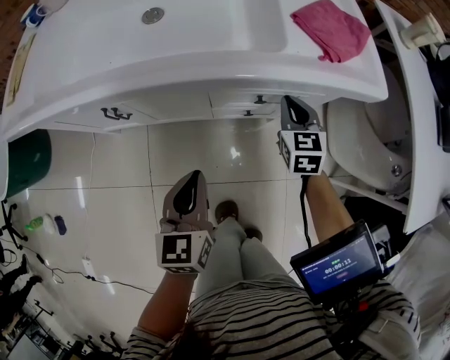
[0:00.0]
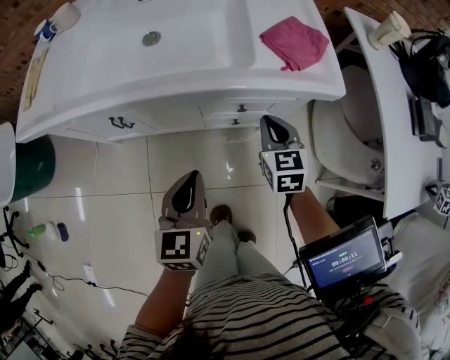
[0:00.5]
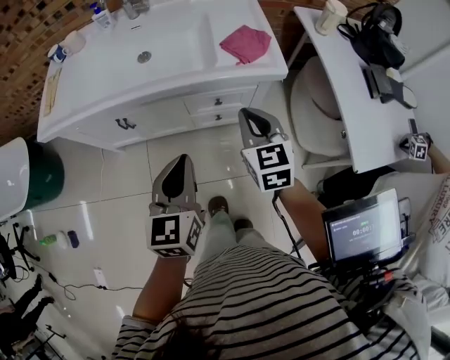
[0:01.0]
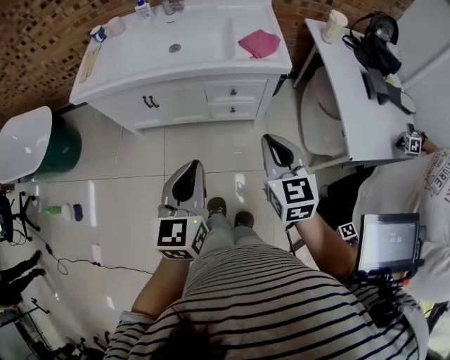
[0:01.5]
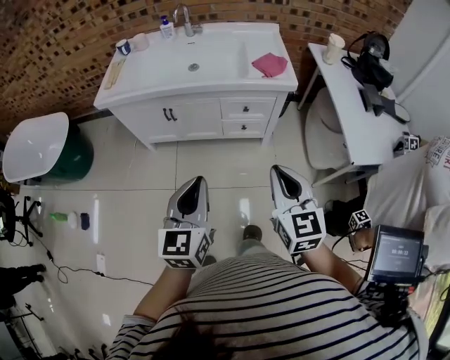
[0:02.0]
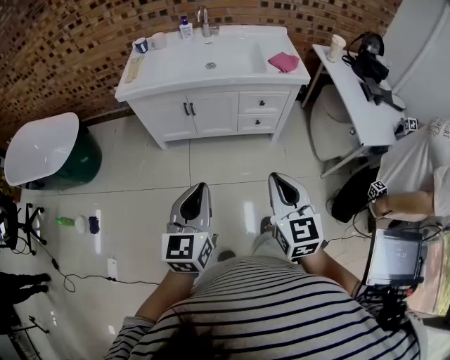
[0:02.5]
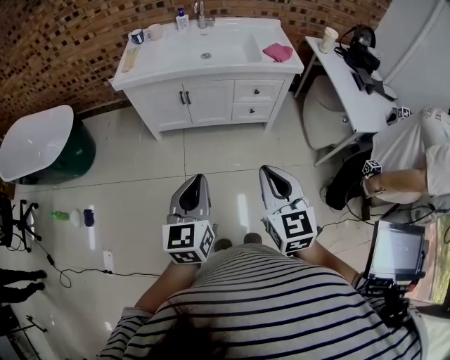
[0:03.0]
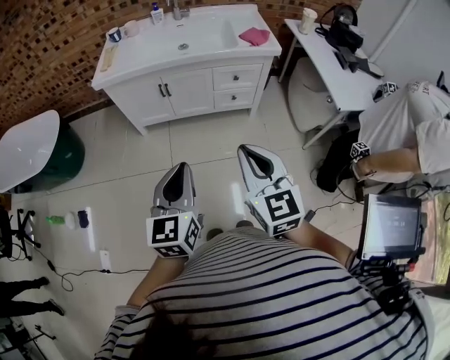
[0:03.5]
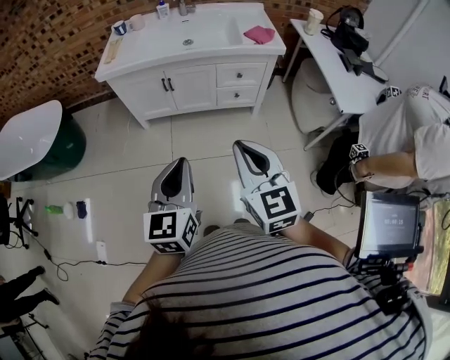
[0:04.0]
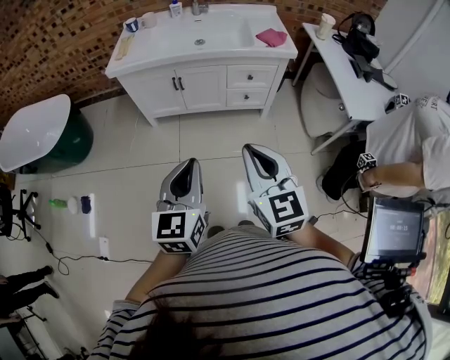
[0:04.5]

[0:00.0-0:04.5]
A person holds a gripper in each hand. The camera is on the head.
0:00.0 to 0:02.0: The right gripper moves backward and upward, some 60 cm, while the left gripper shifts approximately 50 cm upward and backward.
0:02.0 to 0:04.5: The right gripper travels to the left and backward by approximately 25 cm; the left gripper heads backward and to the left, covering approximately 20 cm.

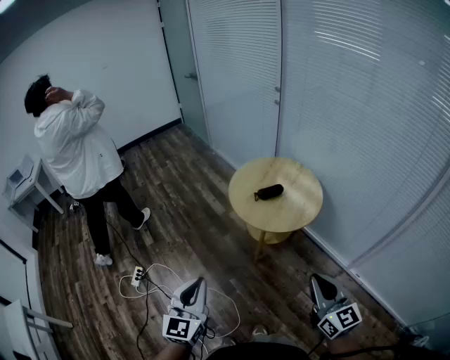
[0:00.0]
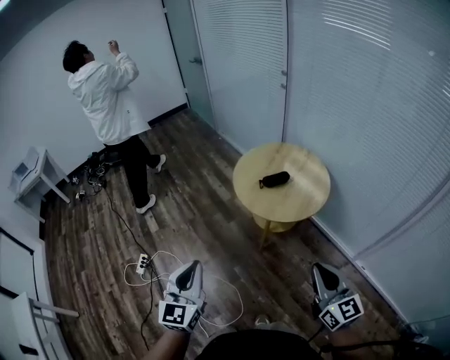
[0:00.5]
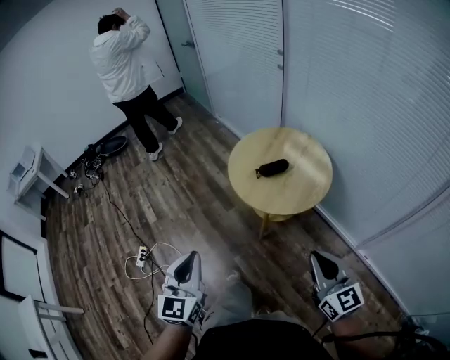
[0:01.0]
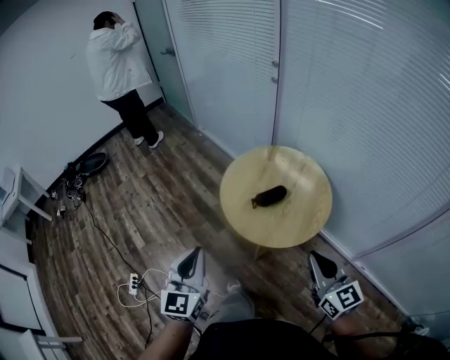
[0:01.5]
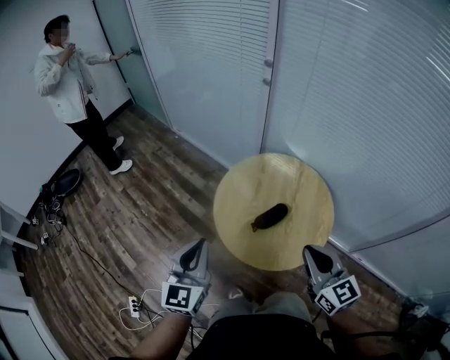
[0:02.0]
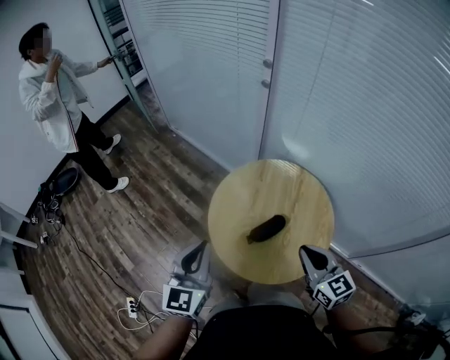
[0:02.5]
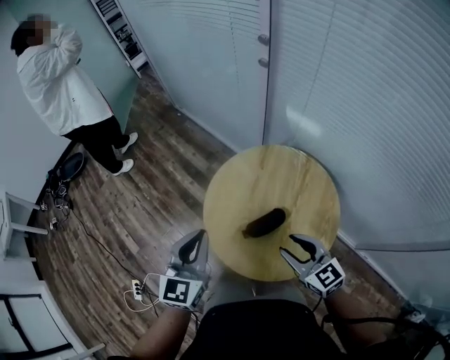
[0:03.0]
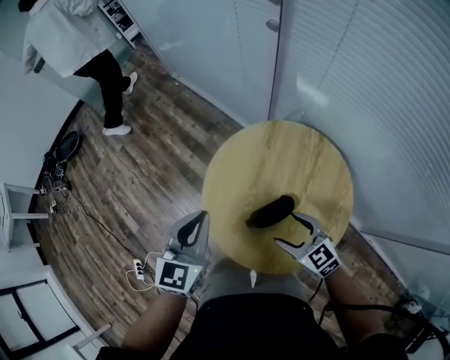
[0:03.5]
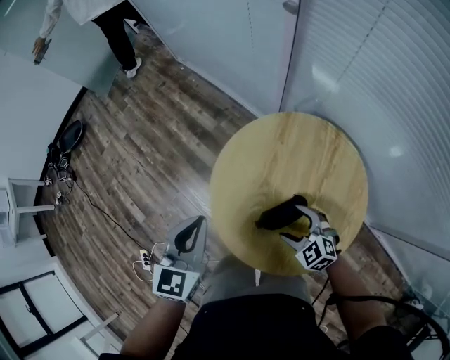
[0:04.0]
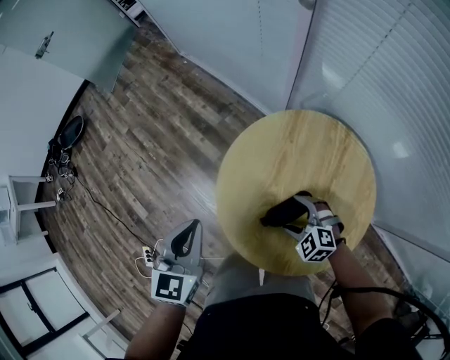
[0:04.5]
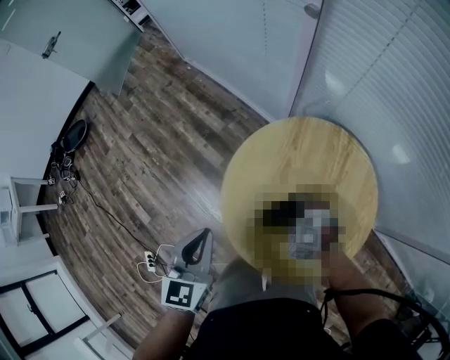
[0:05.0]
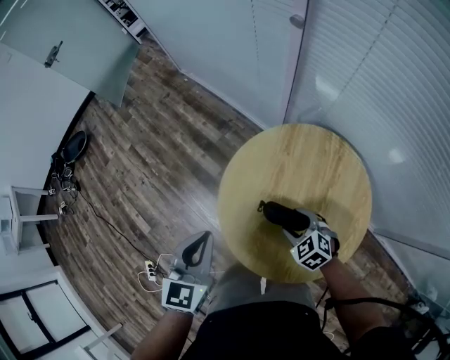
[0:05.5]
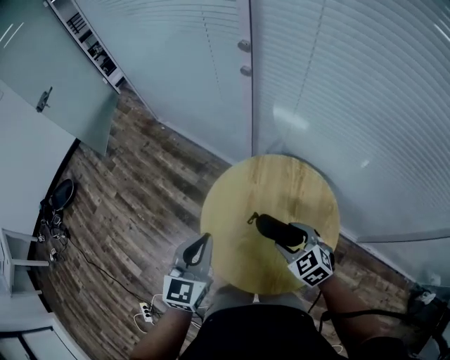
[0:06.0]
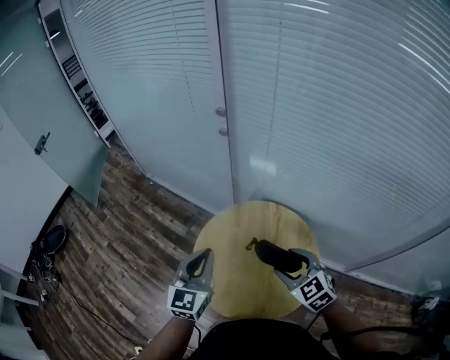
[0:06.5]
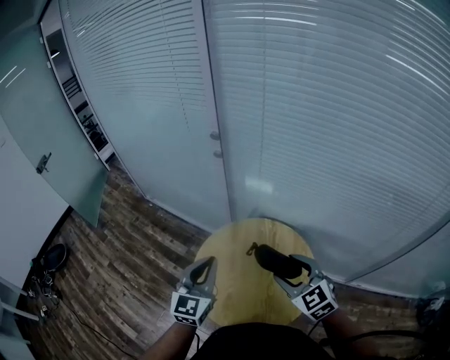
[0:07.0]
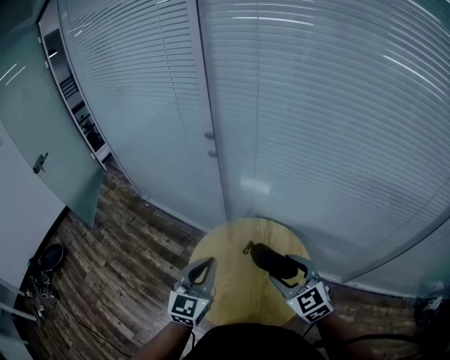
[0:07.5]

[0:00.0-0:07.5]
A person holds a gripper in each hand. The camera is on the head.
0:00.0 to 0:02.0: Both grippers are carried forward, some 50 cm.
0:02.0 to 0:04.0: The right gripper travels downward and forward by about 40 cm, tips its fingers downward by roughly 30 degrees, and opens its fingers, while the left gripper heads forward, downward and to the right, covering approximately 25 cm, and rotates approximately 20 degrees.
0:05.5 to 0:07.5: The right gripper goes roughly 35 cm upward, and changes its angle by some 40 degrees. The left gripper moves upward, about 15 cm, and turns by approximately 30 degrees.

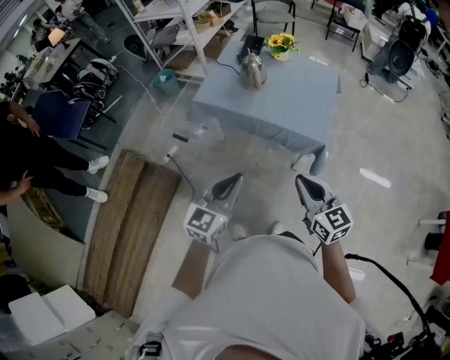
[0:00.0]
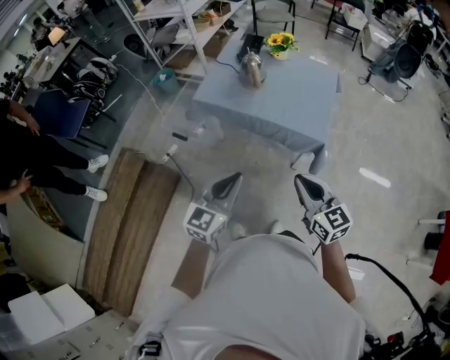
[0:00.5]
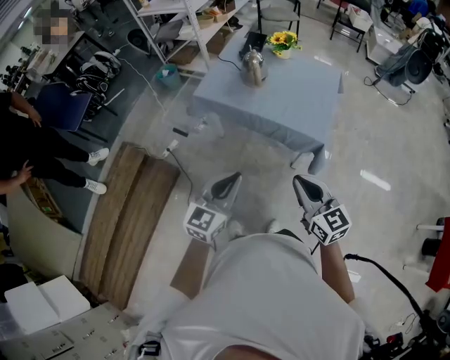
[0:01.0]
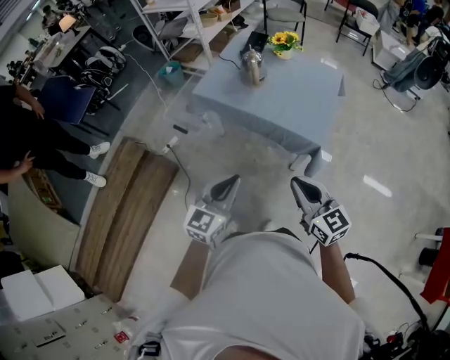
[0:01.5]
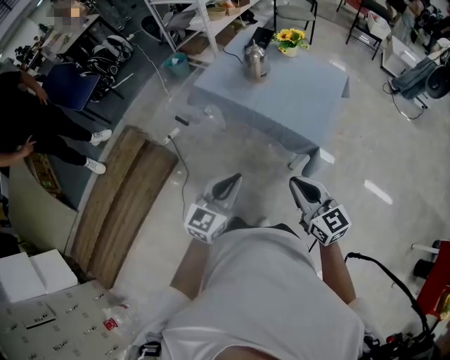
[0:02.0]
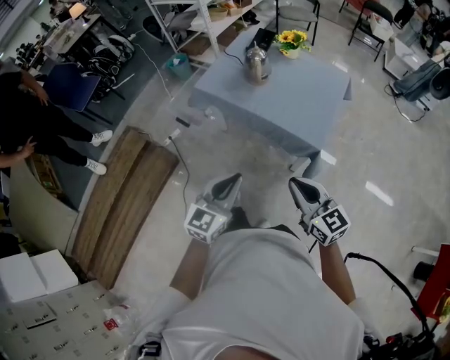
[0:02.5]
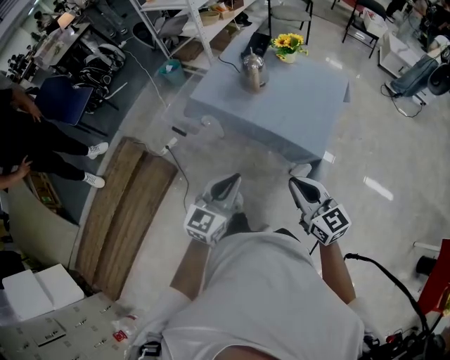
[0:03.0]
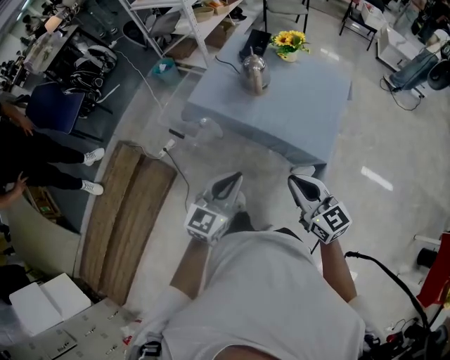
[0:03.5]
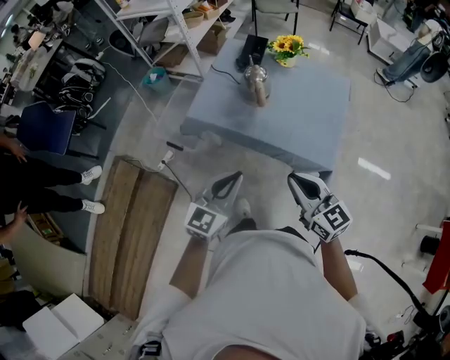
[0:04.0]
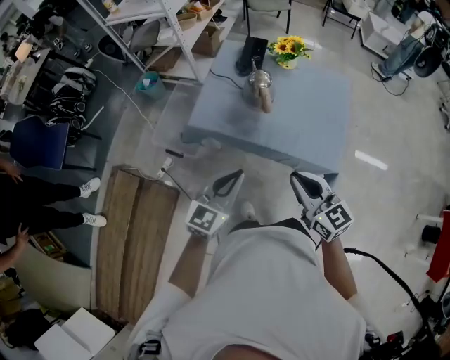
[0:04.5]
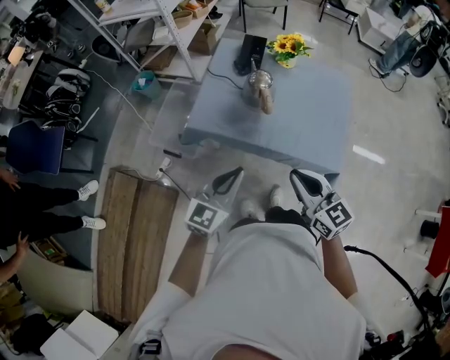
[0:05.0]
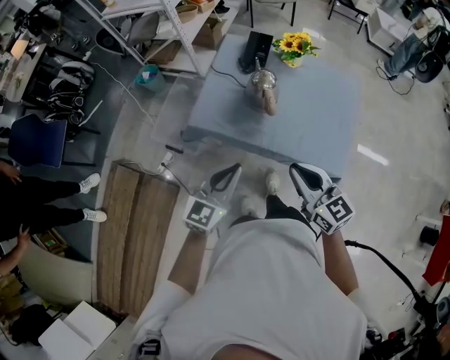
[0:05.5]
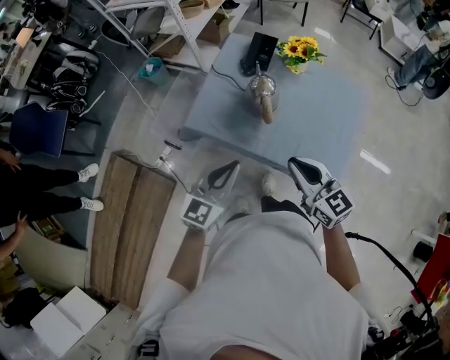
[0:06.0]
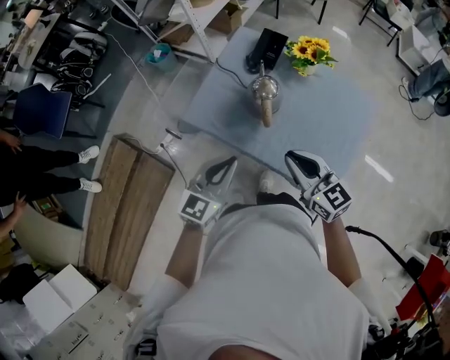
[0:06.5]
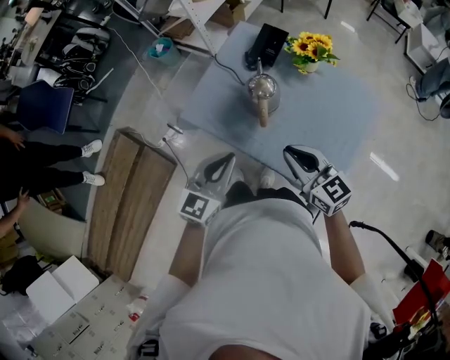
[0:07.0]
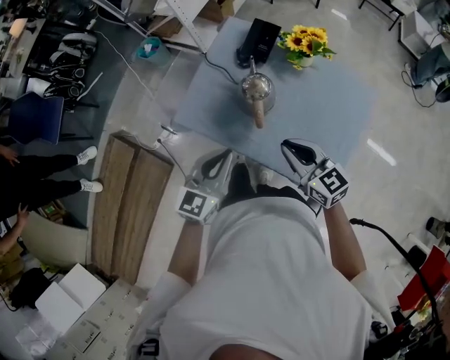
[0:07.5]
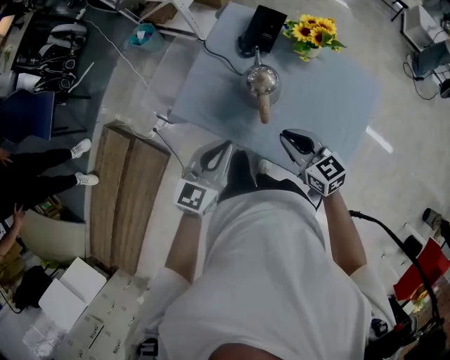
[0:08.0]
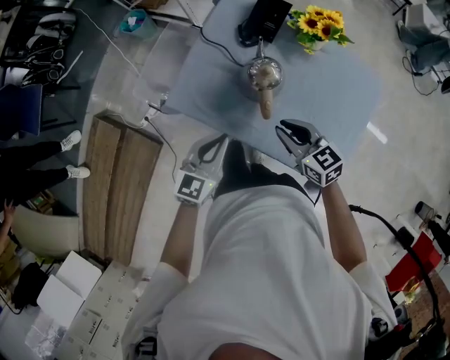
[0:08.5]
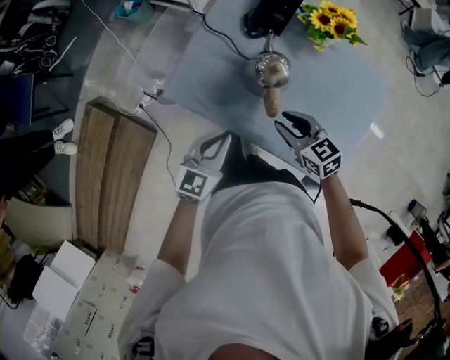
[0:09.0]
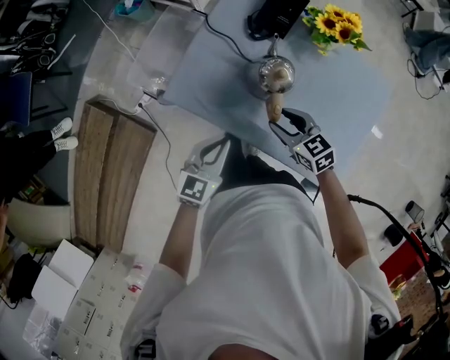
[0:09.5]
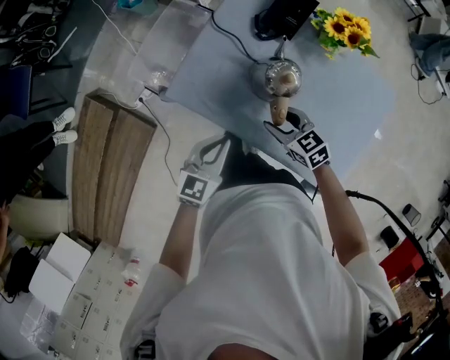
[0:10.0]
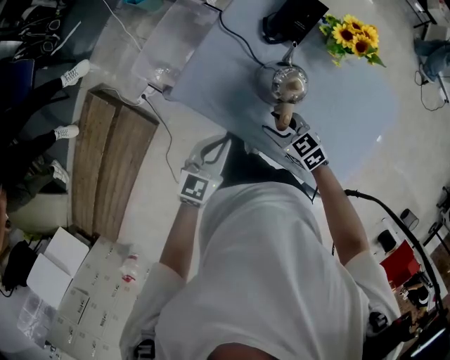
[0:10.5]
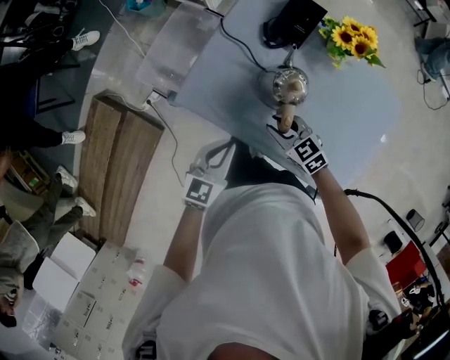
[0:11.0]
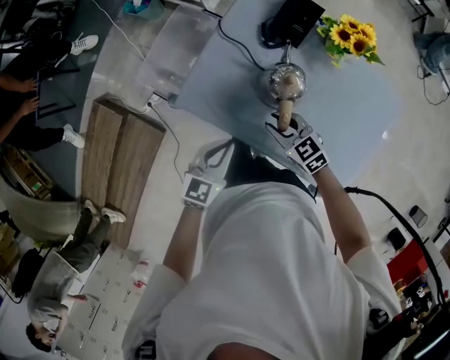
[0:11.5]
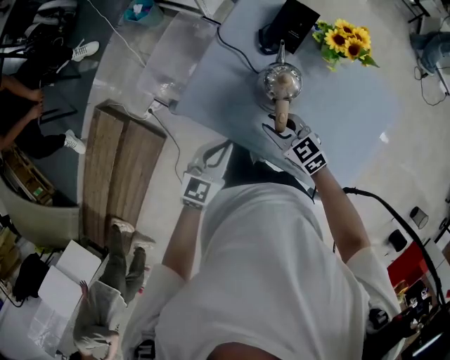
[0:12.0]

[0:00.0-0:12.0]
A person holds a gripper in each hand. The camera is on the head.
0:00.0 to 0:02.0: Both grippers travel together to the right, approximately 10 cm.
0:02.0 to 0:04.0: The left gripper moves forward, roughly 25 cm. The right gripper travels forward and to the left by approximately 25 cm.
0:04.0 to 0:06.0: The two grippers go about 15 cm forward.
0:06.0 to 0:08.0: The grippers both shift forward and downward by about 15 cm.
0:08.0 to 0:10.0: The right gripper is displaced downward, forward and to the left by about 15 cm, changes its angle by some 20 degrees, and opens, while the left gripper is displaced downward by about 10 cm.
0:10.0 to 0:12.0: The right gripper shifts by some 5 cm, and closes its fingers.

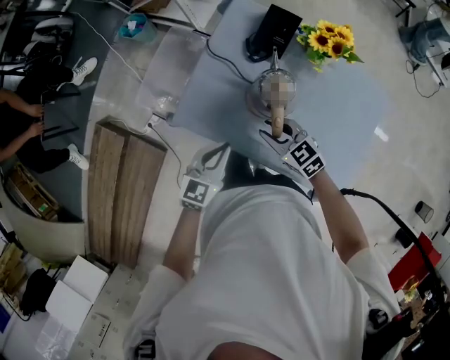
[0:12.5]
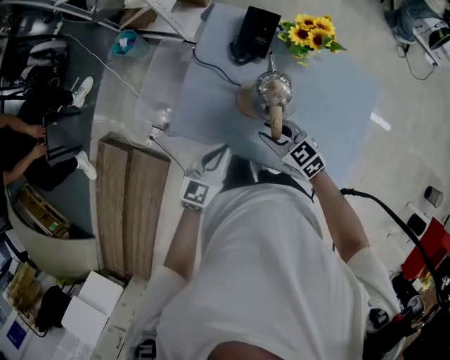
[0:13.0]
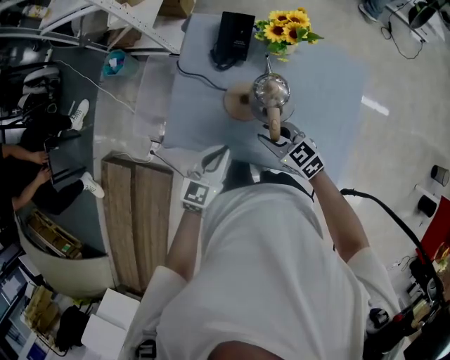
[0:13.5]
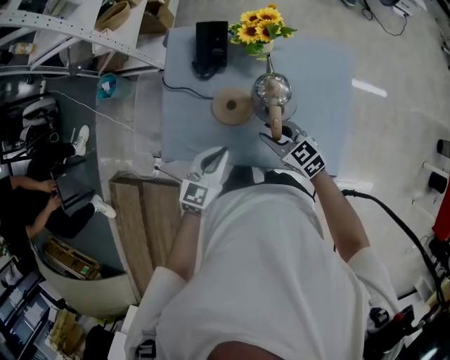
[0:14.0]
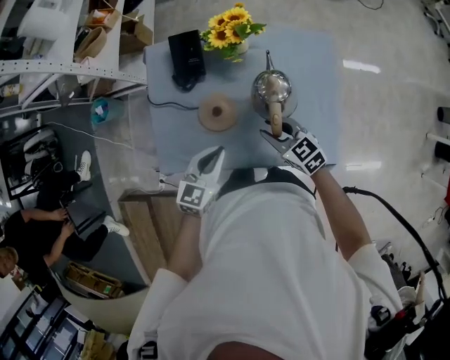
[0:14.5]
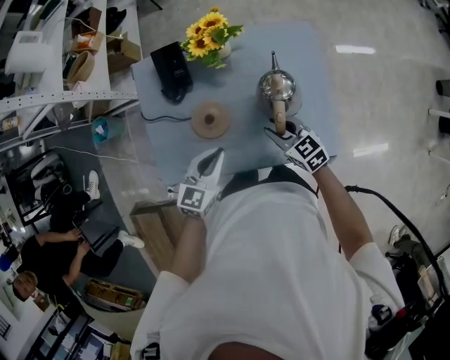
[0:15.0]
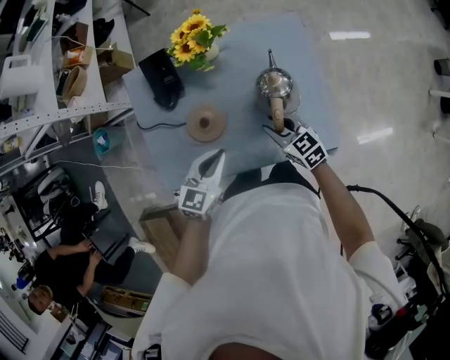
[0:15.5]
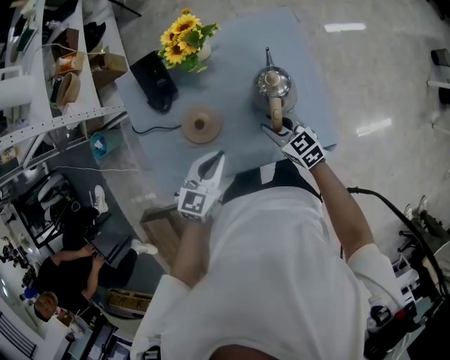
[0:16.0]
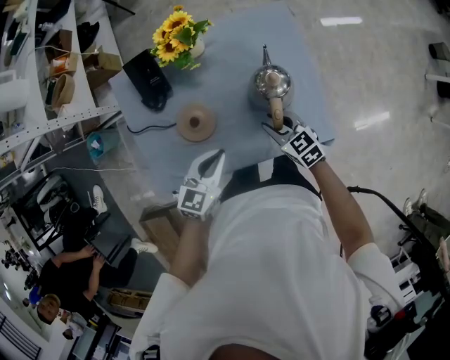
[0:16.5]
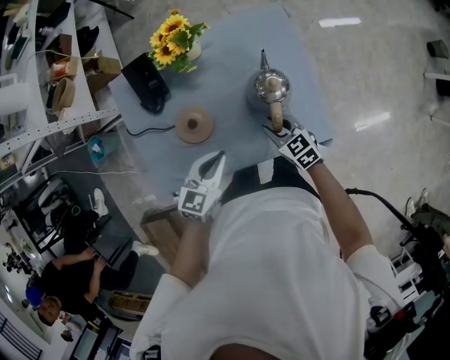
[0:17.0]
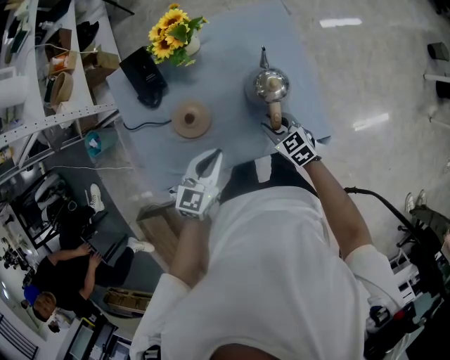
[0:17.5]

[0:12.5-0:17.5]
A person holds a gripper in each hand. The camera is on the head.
0:12.5 to 0:15.0: The right gripper moves about 20 cm, and changes its angle by approximately 40 degrees; the left gripper ends up approximately 15 cm from where it was, and rotates some 30 degrees.
0:15.0 to 0:17.5: The right gripper moves downward and to the right, approximately 10 cm, while the left gripper goes approximately 5 cm to the right.
